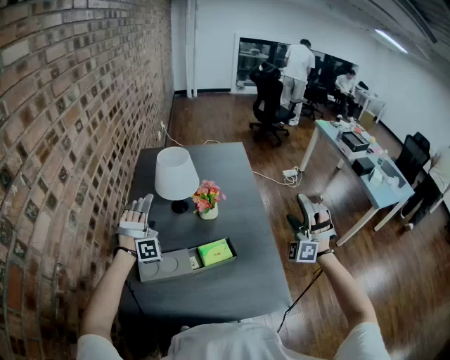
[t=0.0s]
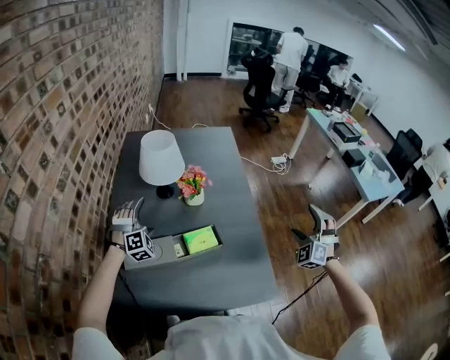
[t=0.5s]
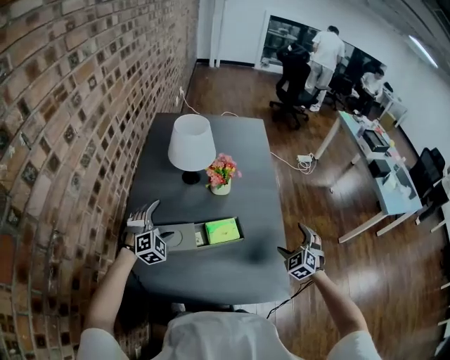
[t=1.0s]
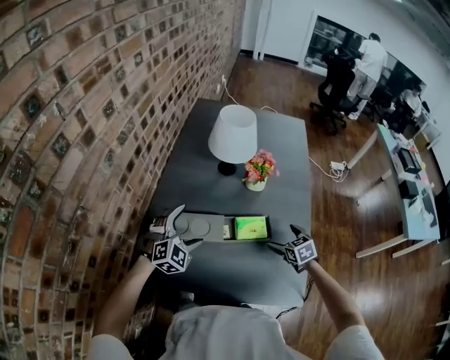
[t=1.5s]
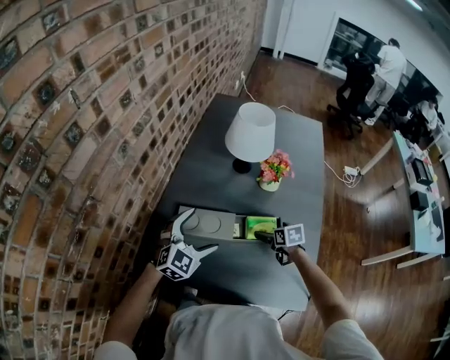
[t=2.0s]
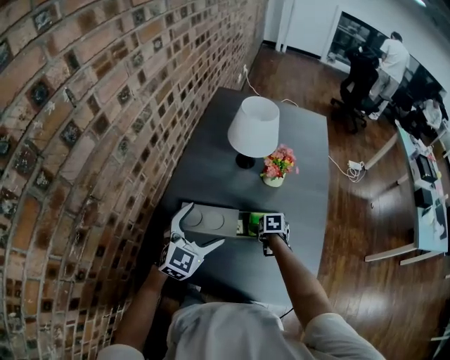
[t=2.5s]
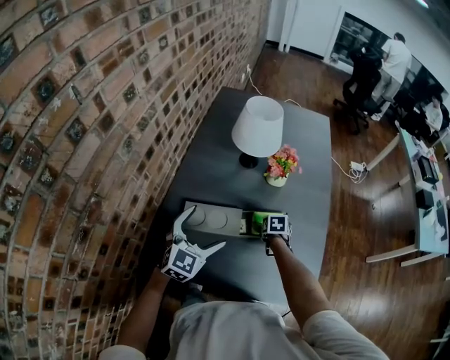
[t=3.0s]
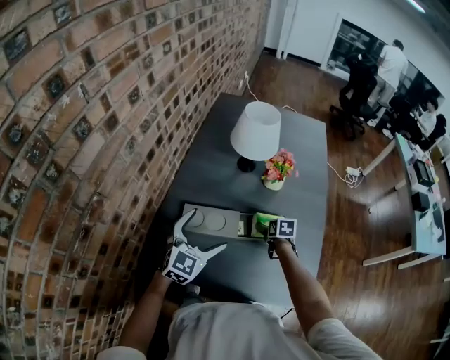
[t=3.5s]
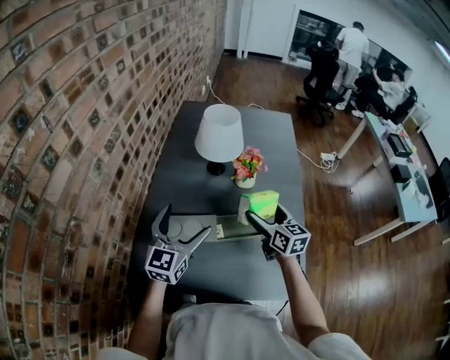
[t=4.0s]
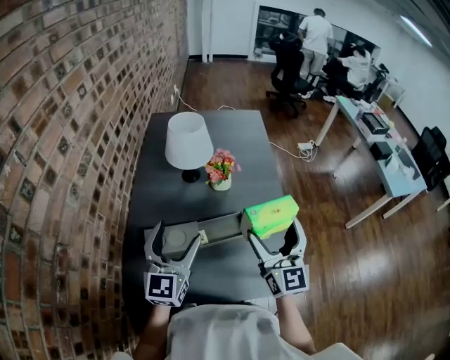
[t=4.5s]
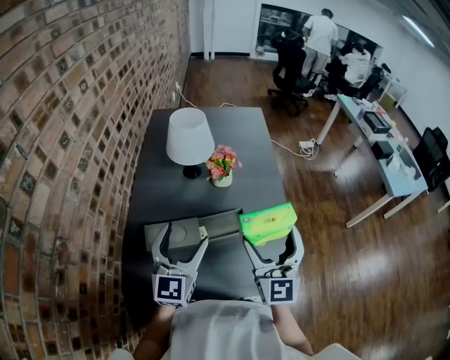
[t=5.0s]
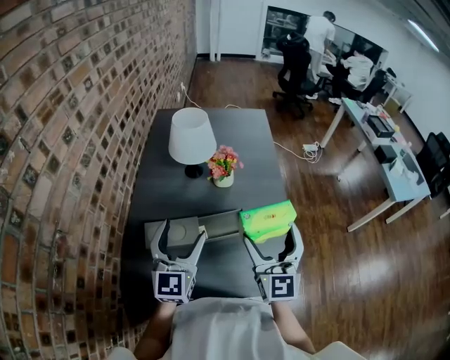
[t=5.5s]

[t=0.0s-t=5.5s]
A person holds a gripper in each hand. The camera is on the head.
t=0.0s to t=2.0s: The left gripper moves backward and downward, roughly 20 cm, and twists approximately 70 degrees counterclockwise, seen from behind, while the right gripper is displaced downward and to the left by roughly 40 cm, and tilts its fingers about 50 degrees downward.
t=3.5s to t=5.5s: The left gripper travels upward and to the right by about 10 cm, and rotates roughly 20 degrees, while the right gripper heads upward and backward, covering roughly 40 cm, and angles its fingers upward, by roughly 70 degrees.

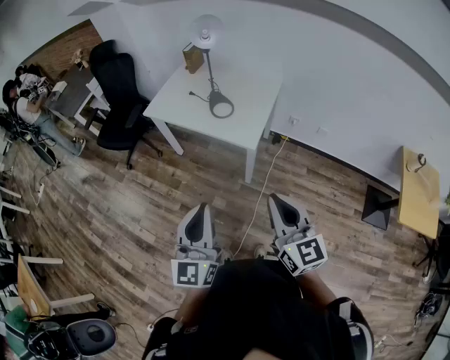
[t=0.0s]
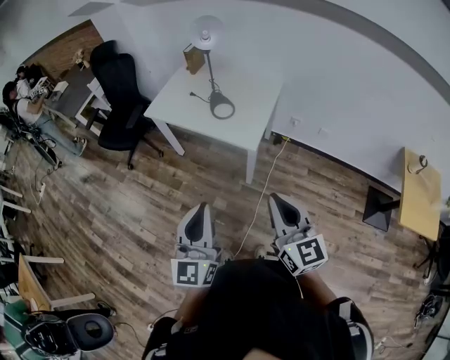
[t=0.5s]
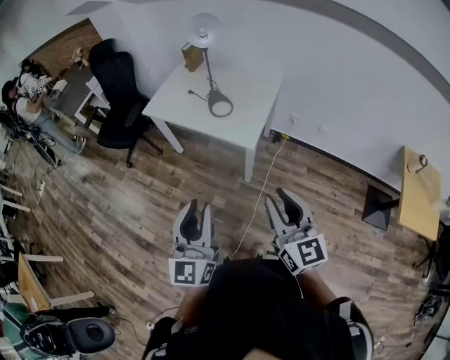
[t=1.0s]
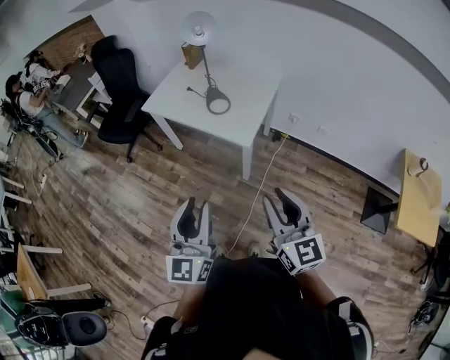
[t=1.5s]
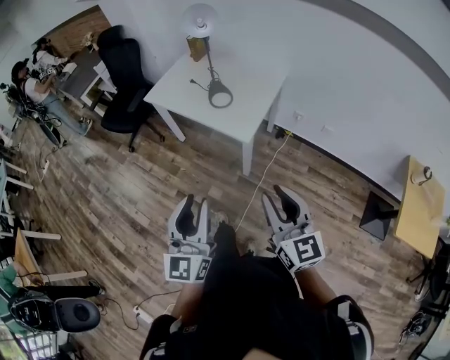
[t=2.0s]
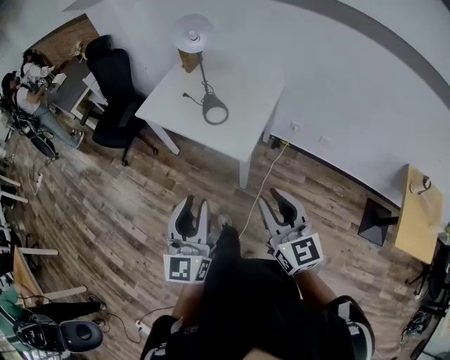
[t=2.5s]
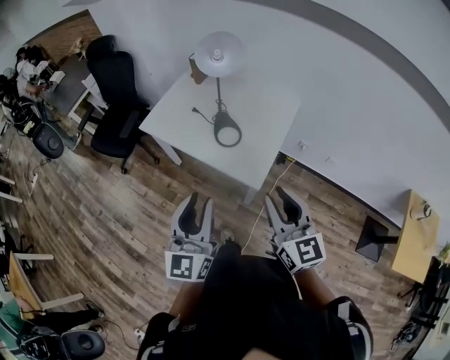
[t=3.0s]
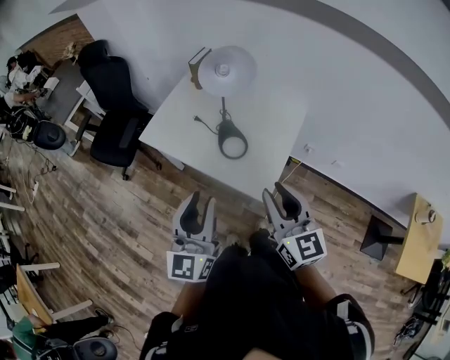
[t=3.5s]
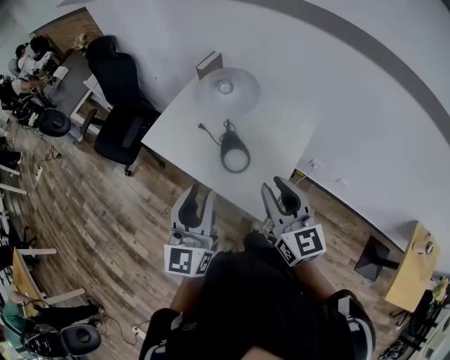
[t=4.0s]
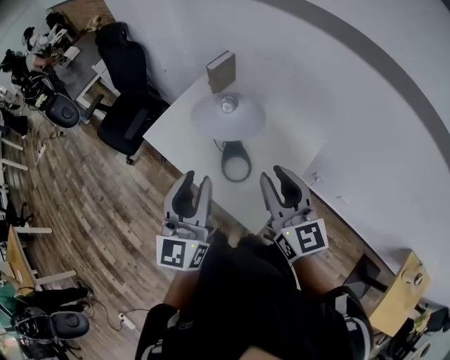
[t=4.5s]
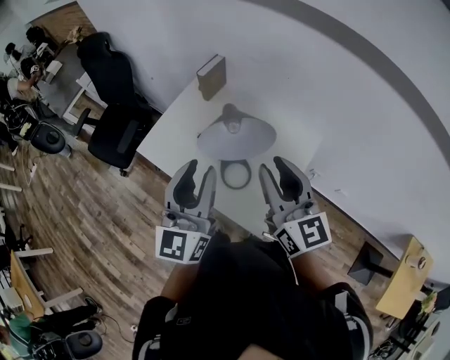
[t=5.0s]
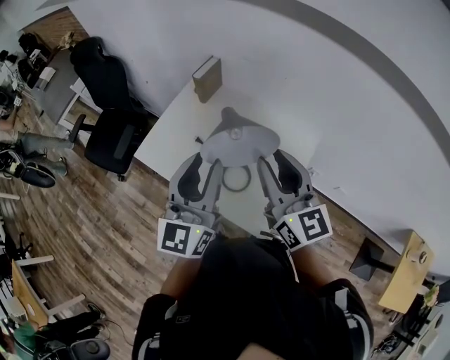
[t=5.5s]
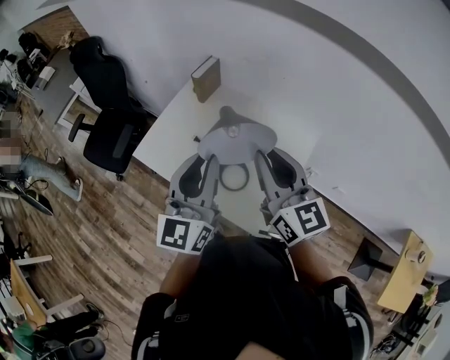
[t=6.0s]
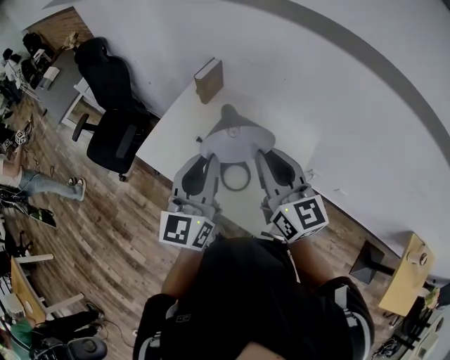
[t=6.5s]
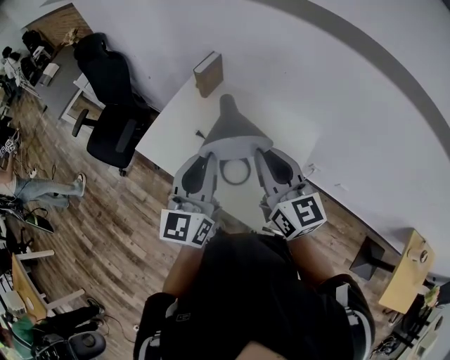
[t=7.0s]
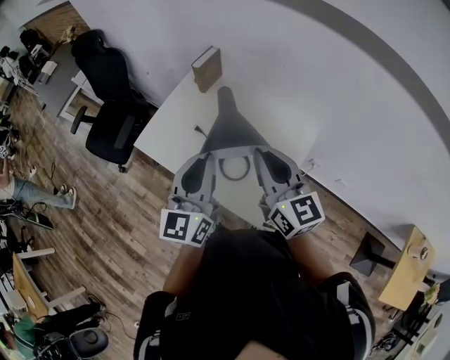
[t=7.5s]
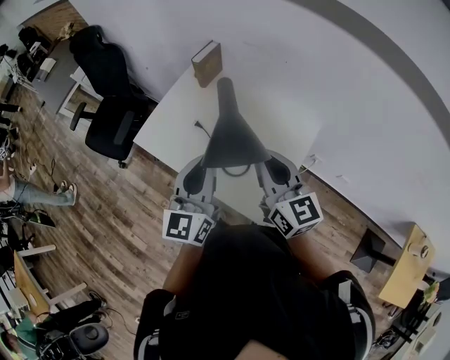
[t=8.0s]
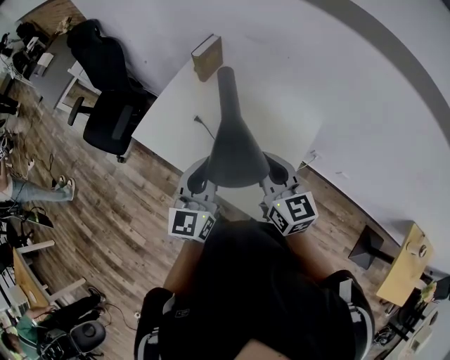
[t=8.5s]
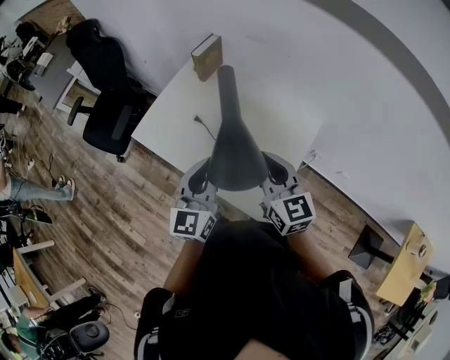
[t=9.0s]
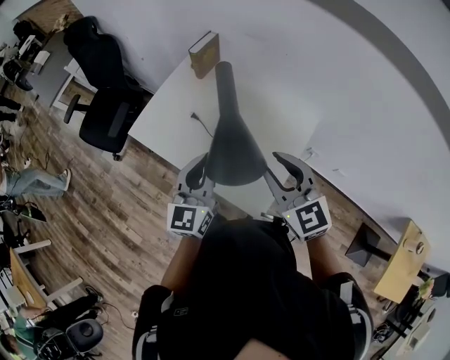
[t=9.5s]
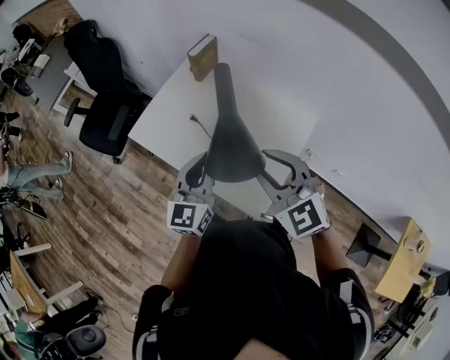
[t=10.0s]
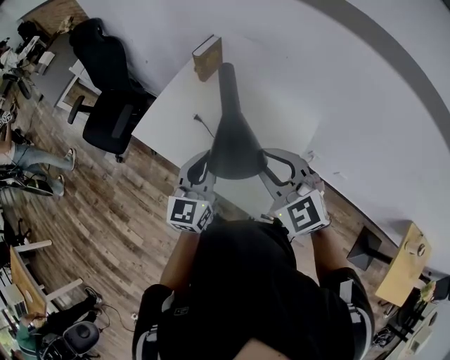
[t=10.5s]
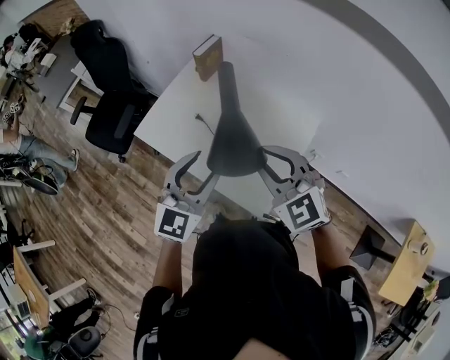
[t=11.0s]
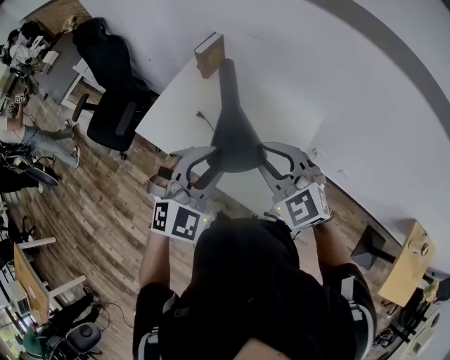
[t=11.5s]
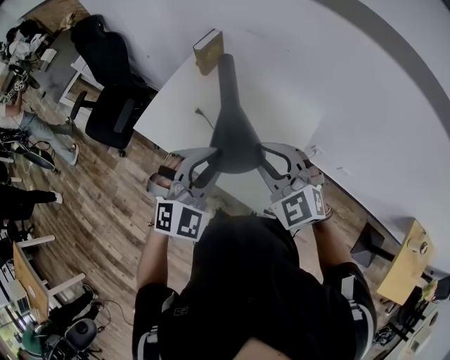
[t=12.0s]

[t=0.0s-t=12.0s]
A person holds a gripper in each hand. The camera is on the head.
t=0.0s to t=2.0s: Both grippers move to the right, some 10 cm. The right gripper opens. The left gripper opens its fingers.
t=2.0s to t=4.0s: The pair of grippers is taken forward, about 40 cm.
t=4.0s to t=6.0s: The two grippers go some 20 cm forward.
t=6.0s to t=8.0s: Both grippers move downward, approximately 5 cm.
t=8.0s to t=10.0s: The right gripper rotates approximately 40 degrees, and opens its fingers; the left gripper is displaced downward by some 5 cm.
t=10.0s to t=12.0s: The left gripper shifts by some 5 cm, rotates around the line of its fingers by roughly 60 degrees, clockwise from behind, and opens, then closes once more.

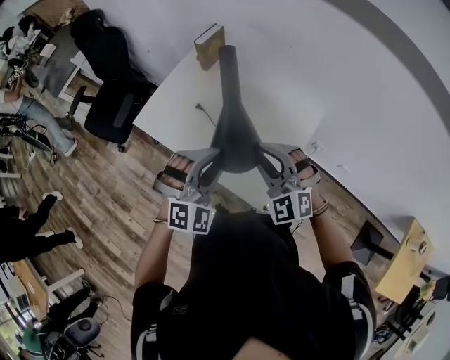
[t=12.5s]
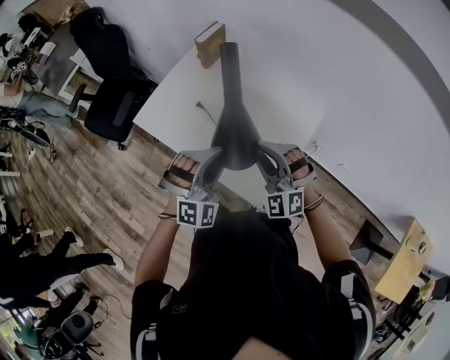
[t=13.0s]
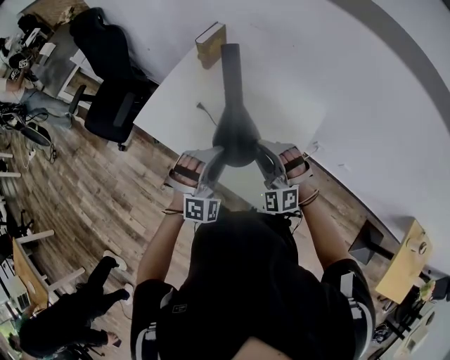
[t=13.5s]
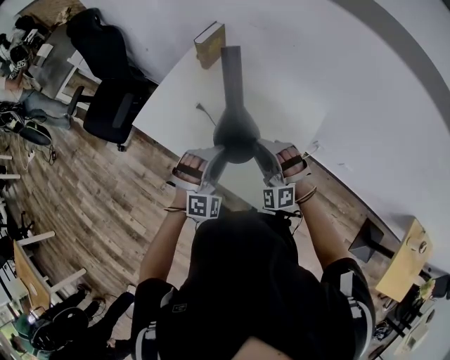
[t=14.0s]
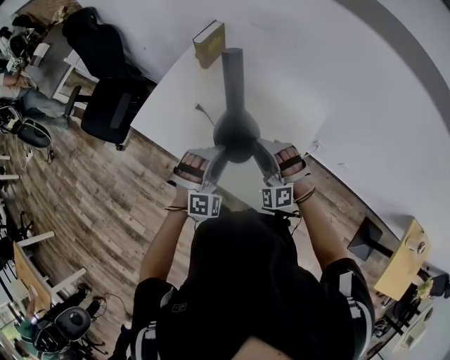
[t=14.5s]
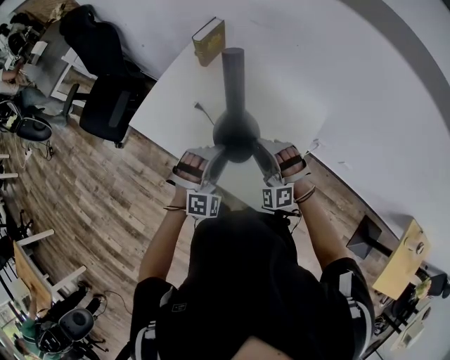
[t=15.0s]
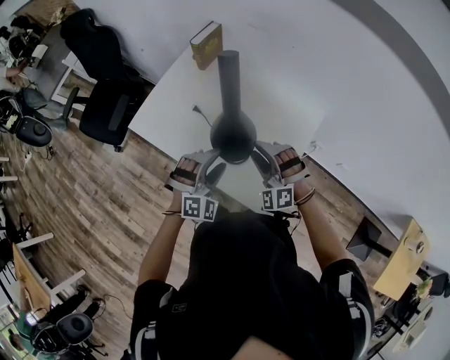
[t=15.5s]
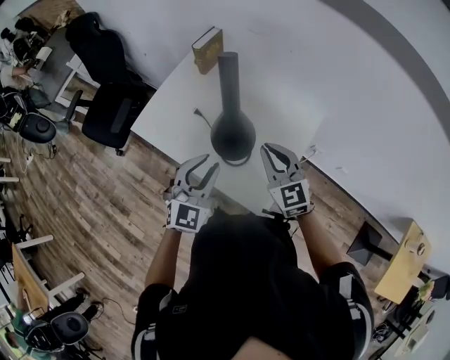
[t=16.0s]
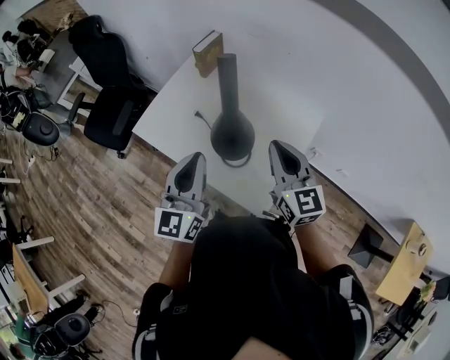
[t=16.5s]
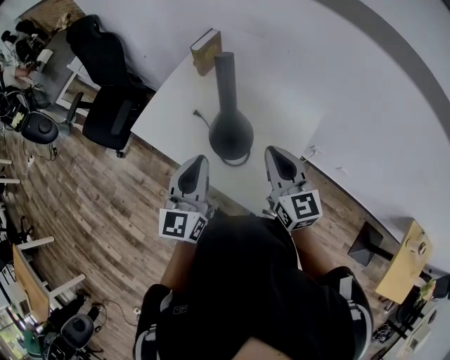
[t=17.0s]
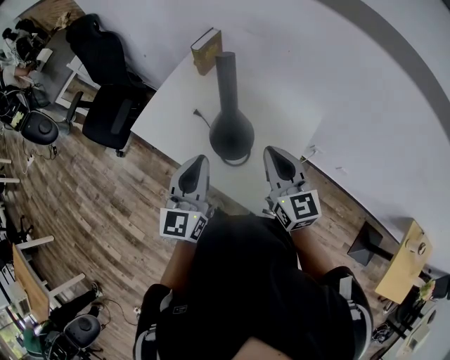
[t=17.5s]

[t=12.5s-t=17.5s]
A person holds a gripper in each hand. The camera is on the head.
t=12.5s to t=15.0s: The grippers both shift downward and forward by approximately 15 cm. The right gripper rotates roughly 20 degrees, and opens its fingers.
t=15.0s to t=17.5s: Both grippers move upward, some 15 cm. The right gripper rolls clockwise, seen from behind, by about 80 degrees, and closes its fingers, while the left gripper twists roughly 80 degrees counterclockwise, seen from behind, and closes.

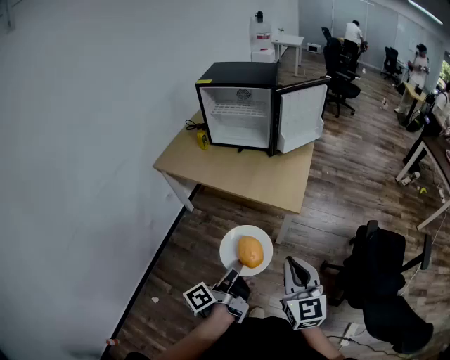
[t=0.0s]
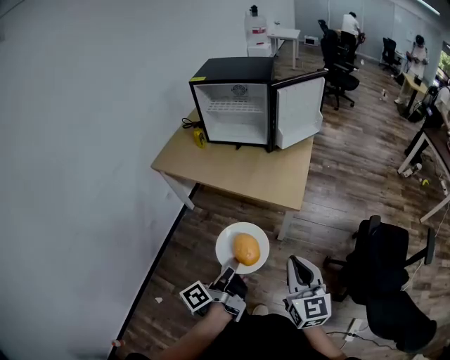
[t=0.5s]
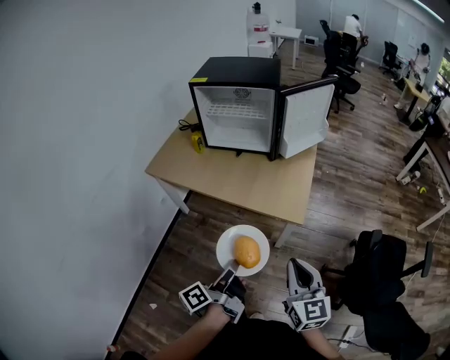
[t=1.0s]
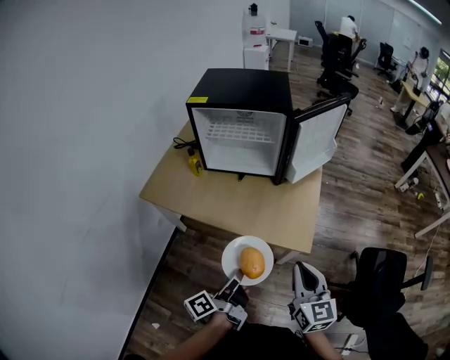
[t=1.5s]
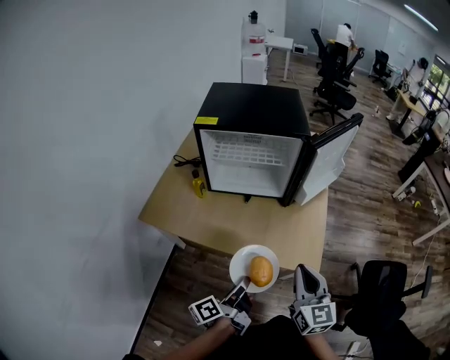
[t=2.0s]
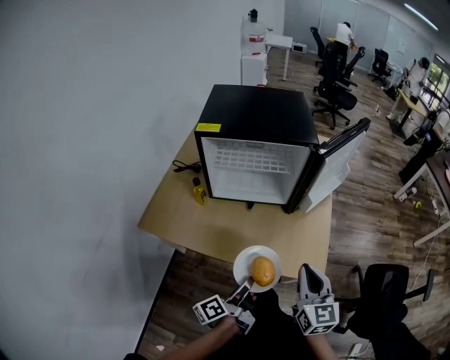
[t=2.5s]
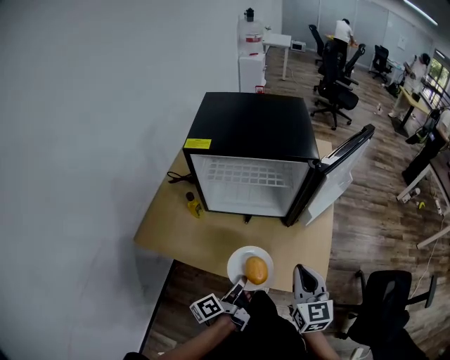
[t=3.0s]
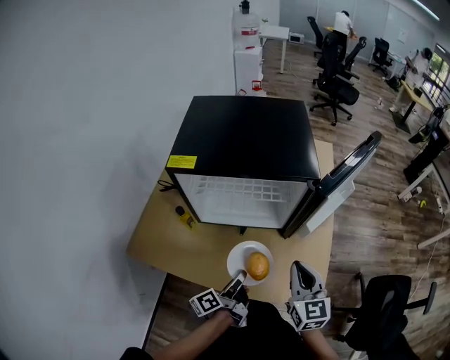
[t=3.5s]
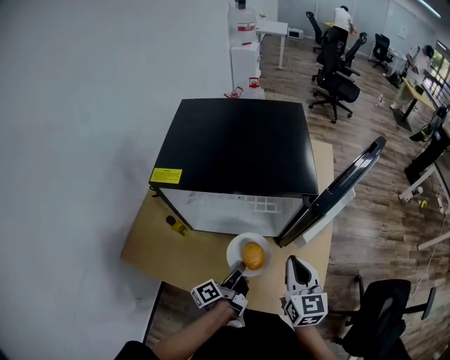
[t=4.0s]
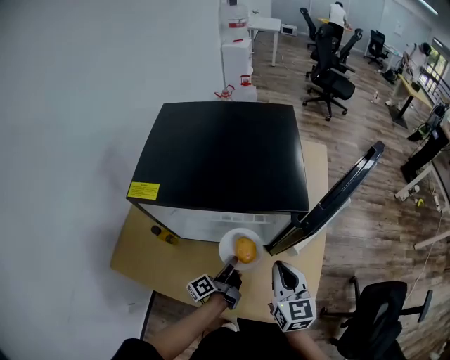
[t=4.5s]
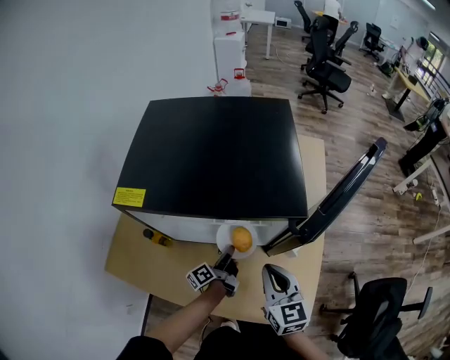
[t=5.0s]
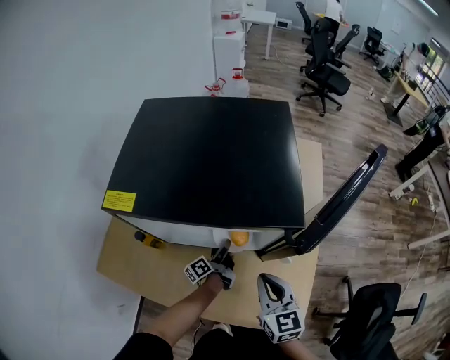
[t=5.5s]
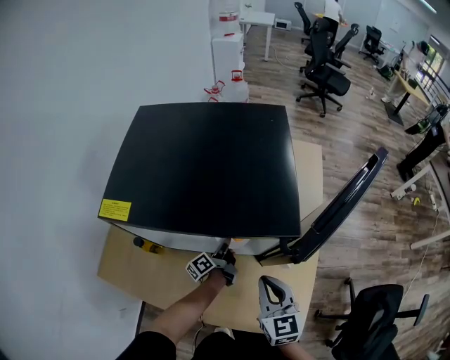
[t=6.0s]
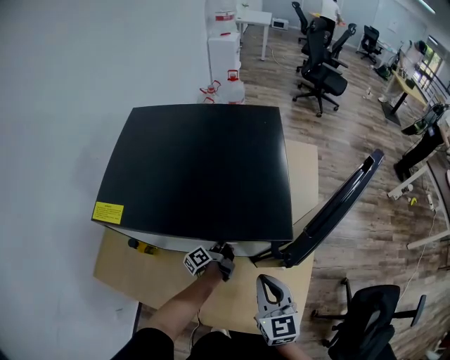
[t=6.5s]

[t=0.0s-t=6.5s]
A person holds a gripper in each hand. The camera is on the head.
t=0.0s to t=2.0s: The two grippers go some 30 cm forward.
t=2.0s to t=4.5s: Both grippers move forward, about 35 cm.
t=4.5s to t=6.5s: The left gripper moves forward and downward, approximately 20 cm.
